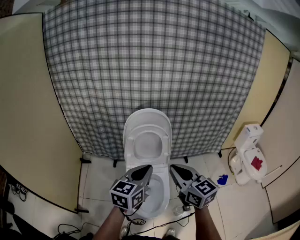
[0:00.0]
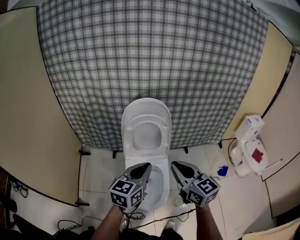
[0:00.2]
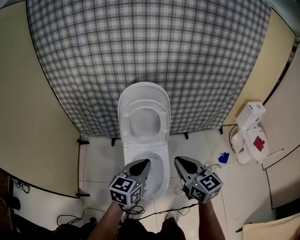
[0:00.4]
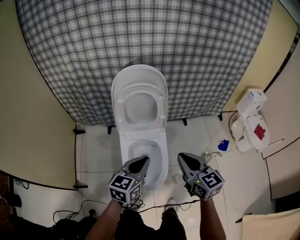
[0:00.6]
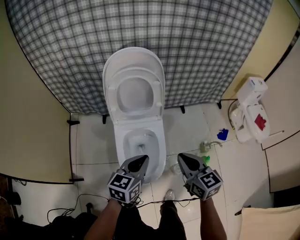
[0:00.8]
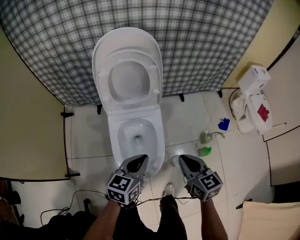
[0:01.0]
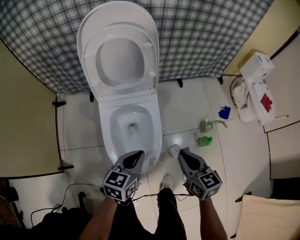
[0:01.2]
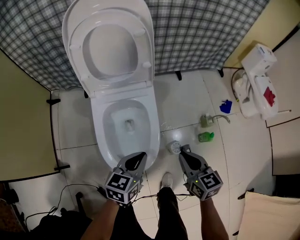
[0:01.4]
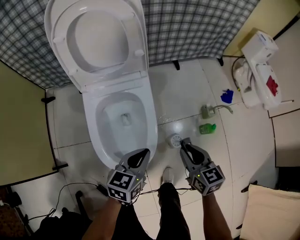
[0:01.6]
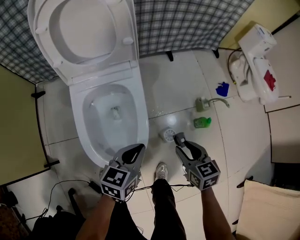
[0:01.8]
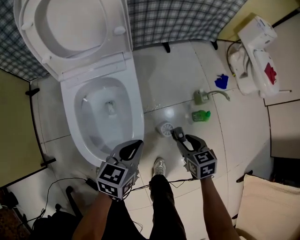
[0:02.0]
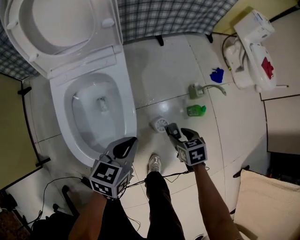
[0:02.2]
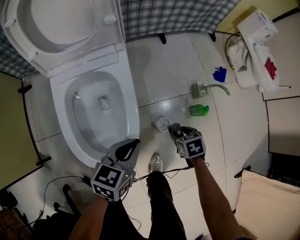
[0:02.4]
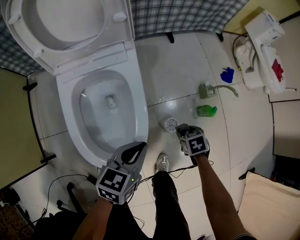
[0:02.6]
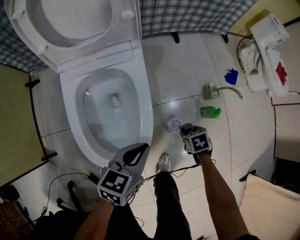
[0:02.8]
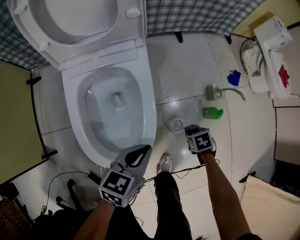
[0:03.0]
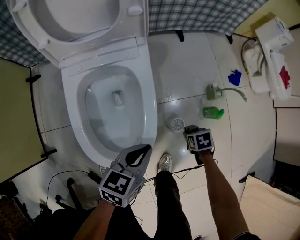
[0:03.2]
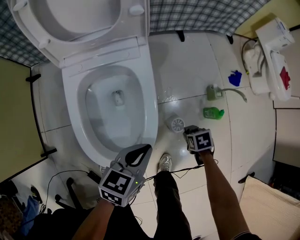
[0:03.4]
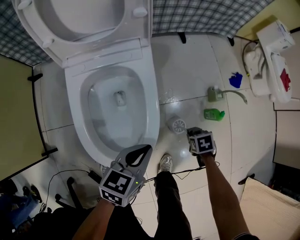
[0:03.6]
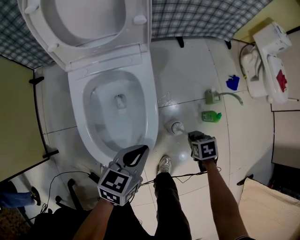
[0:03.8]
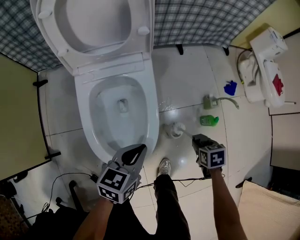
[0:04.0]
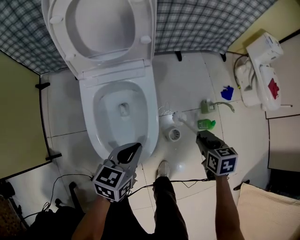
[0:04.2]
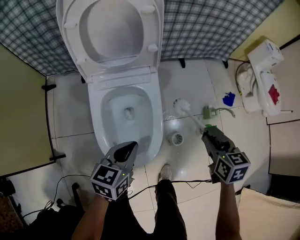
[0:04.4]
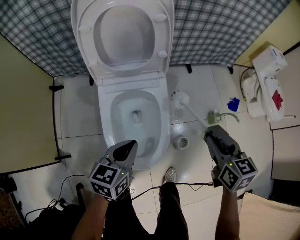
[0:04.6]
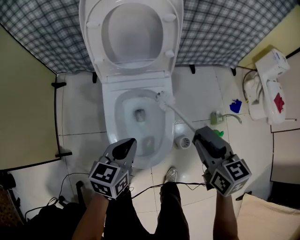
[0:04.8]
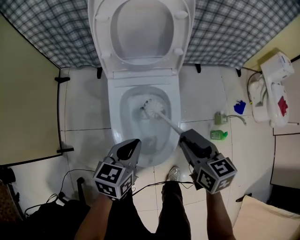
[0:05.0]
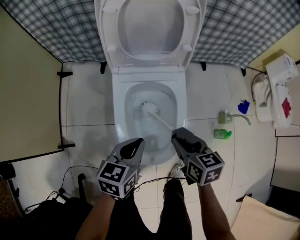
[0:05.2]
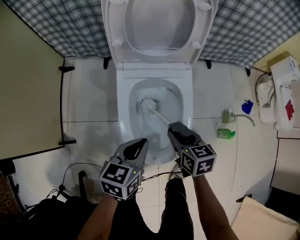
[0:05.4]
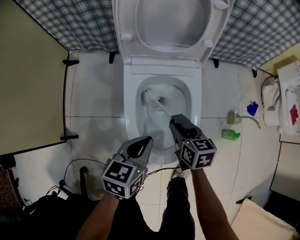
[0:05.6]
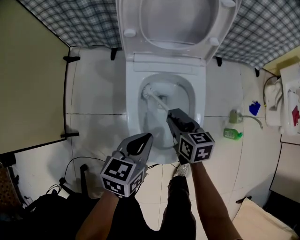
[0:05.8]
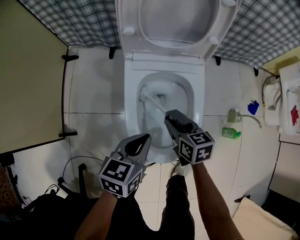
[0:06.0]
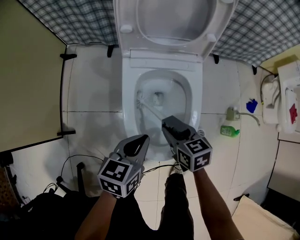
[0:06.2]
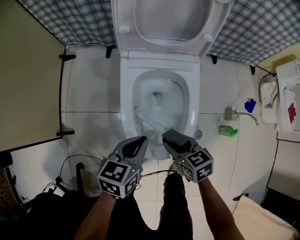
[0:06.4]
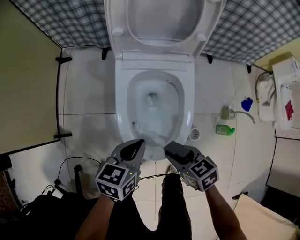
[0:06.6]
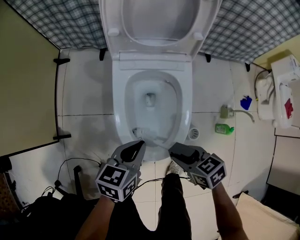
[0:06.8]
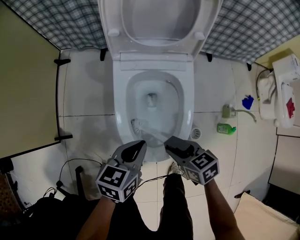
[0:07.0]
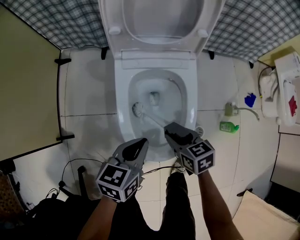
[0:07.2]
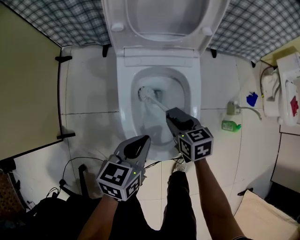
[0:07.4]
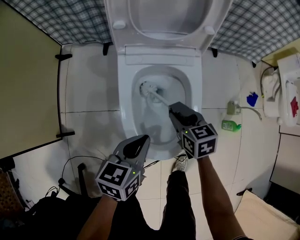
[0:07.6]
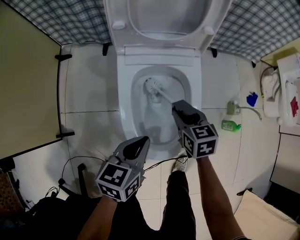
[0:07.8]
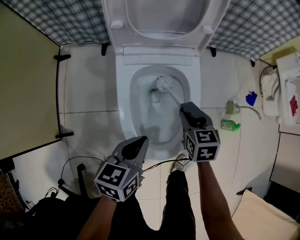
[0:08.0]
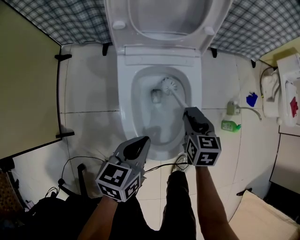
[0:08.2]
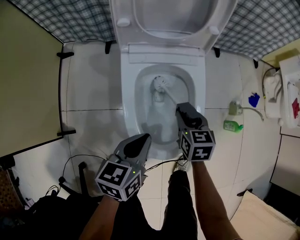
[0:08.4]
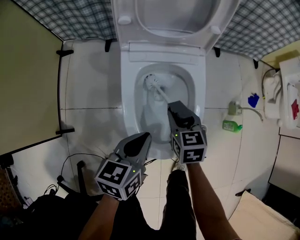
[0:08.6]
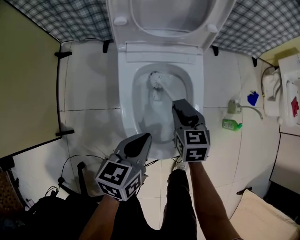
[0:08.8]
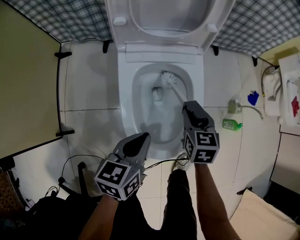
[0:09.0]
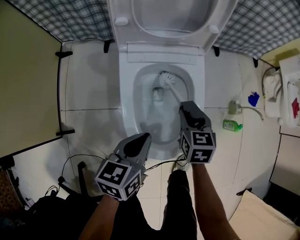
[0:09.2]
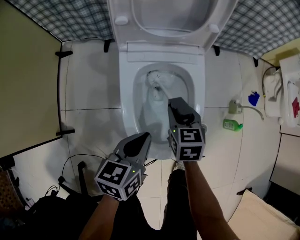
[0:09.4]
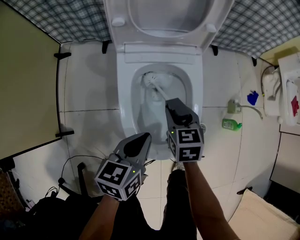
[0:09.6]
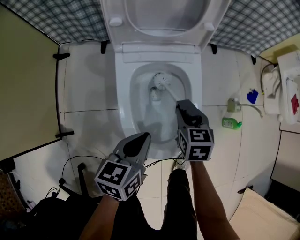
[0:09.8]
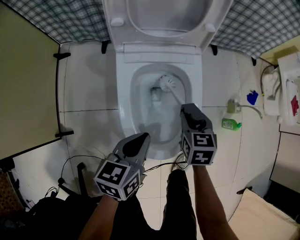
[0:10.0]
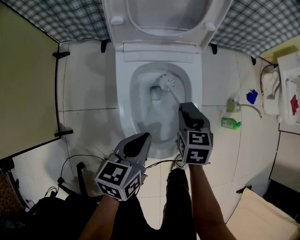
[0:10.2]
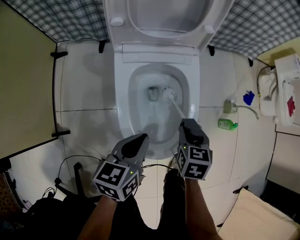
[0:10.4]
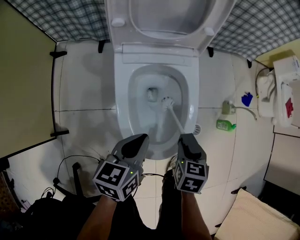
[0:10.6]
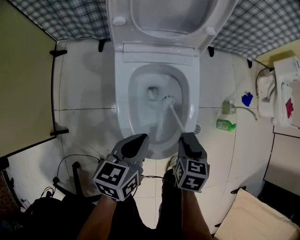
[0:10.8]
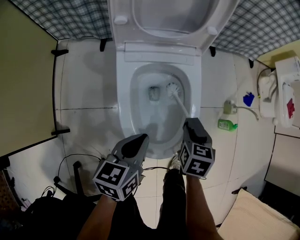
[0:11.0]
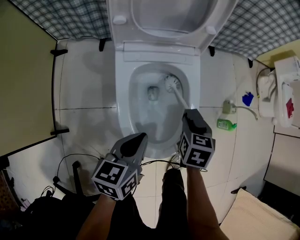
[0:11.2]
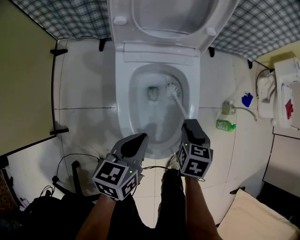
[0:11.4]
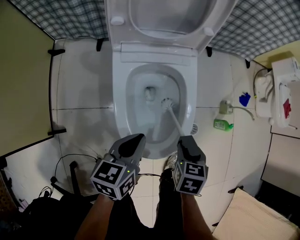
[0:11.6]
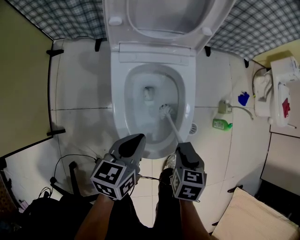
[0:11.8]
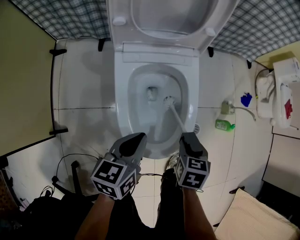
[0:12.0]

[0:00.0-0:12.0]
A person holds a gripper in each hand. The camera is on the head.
0:00.0 to 0:01.6: The two grippers go about 40 cm downward. The left gripper rotates some 30 degrees, while the right gripper rotates roughly 30 degrees.
0:01.6 to 0:03.0: The right gripper goes approximately 25 cm downward, and tips its fingers downward by about 50 degrees. The left gripper travels downward by approximately 5 cm.
0:03.0 to 0:04.4: The right gripper heads upward, covering roughly 30 cm, and tilts its fingers approximately 40 degrees upward, while the left gripper ends up approximately 15 cm from where it was.
0:04.4 to 0:06.0: The left gripper heads to the left, covering approximately 10 cm, while the right gripper goes some 35 cm to the left and downward, and changes its angle by approximately 20 degrees.
0:06.0 to 0:07.6: The right gripper reaches approximately 15 cm backward, then returns.
0:07.6 to 0:09.0: The right gripper moves left and right over some 10 cm, changing direction 2 times.
0:09.0 to 0:10.4: The right gripper travels backward by approximately 5 cm, and goes to the left and returns, about 5 cm each way.
0:10.4 to 0:12.0: The right gripper goes forward and backward, some 10 cm each way, reversing 3 times.

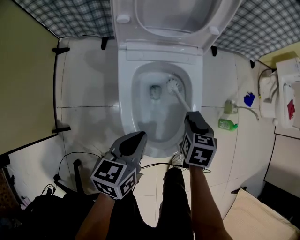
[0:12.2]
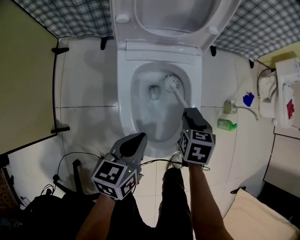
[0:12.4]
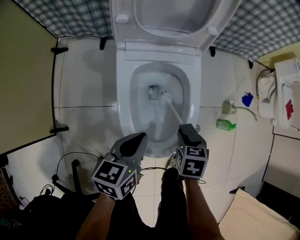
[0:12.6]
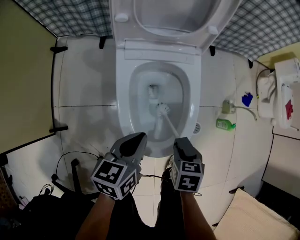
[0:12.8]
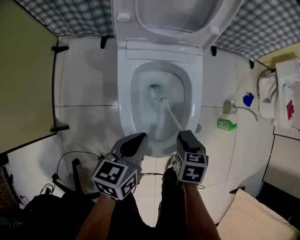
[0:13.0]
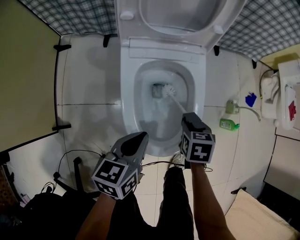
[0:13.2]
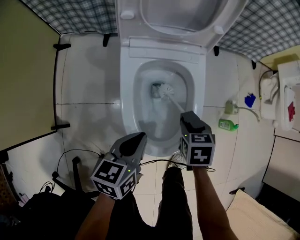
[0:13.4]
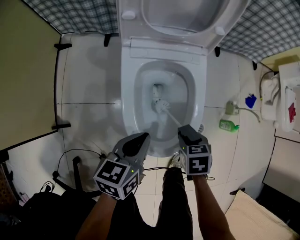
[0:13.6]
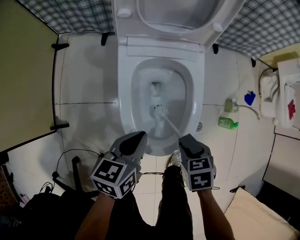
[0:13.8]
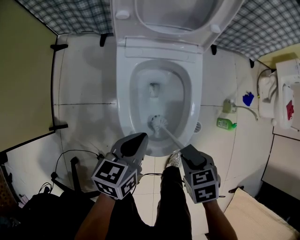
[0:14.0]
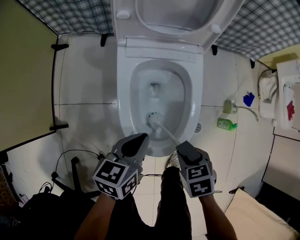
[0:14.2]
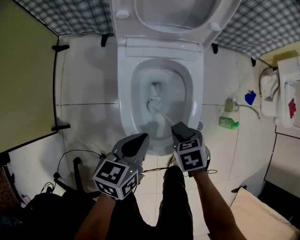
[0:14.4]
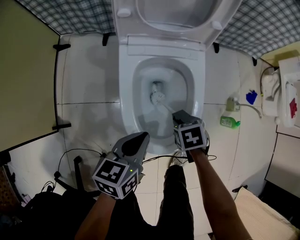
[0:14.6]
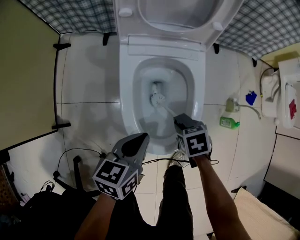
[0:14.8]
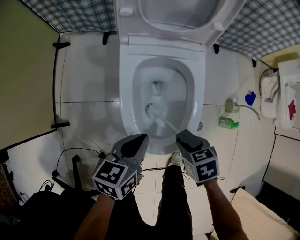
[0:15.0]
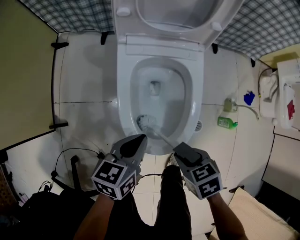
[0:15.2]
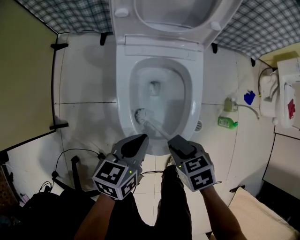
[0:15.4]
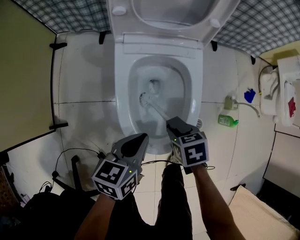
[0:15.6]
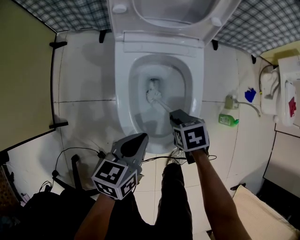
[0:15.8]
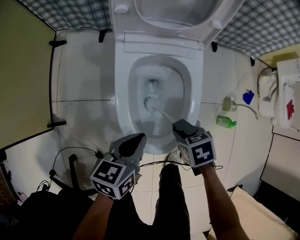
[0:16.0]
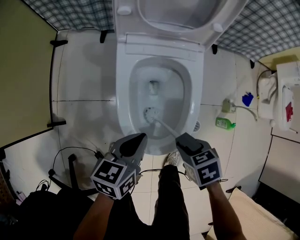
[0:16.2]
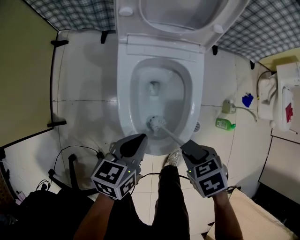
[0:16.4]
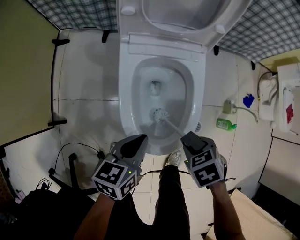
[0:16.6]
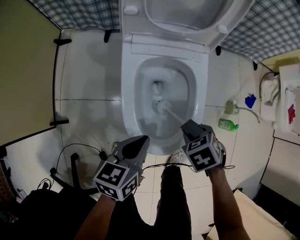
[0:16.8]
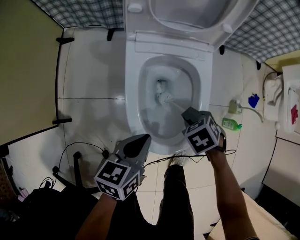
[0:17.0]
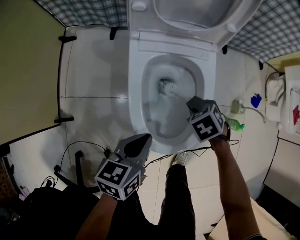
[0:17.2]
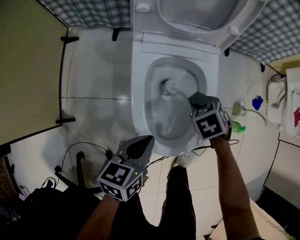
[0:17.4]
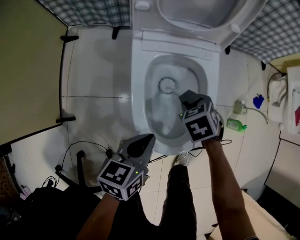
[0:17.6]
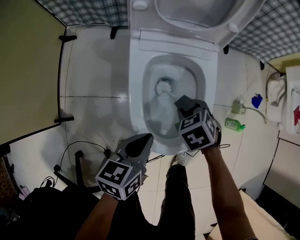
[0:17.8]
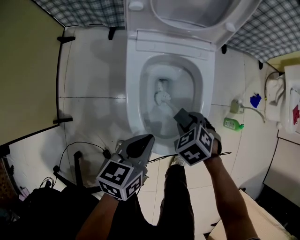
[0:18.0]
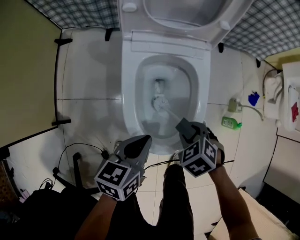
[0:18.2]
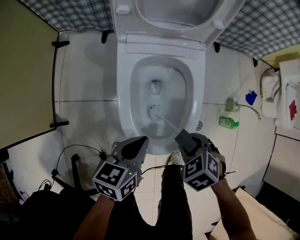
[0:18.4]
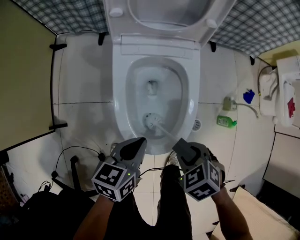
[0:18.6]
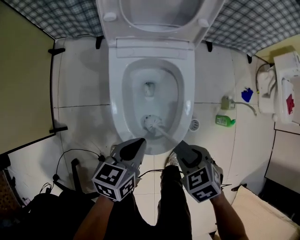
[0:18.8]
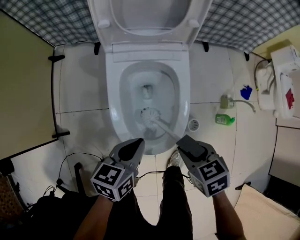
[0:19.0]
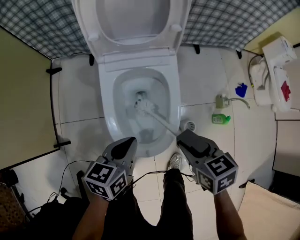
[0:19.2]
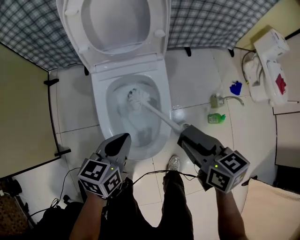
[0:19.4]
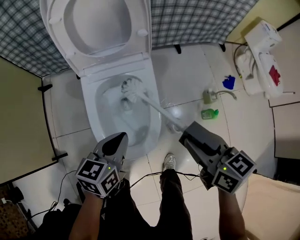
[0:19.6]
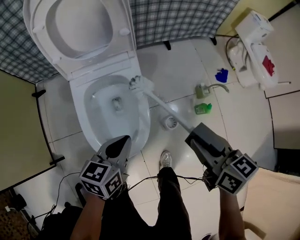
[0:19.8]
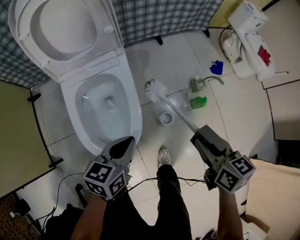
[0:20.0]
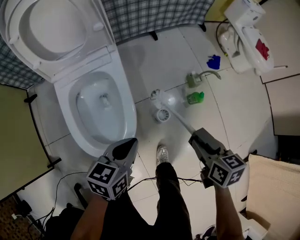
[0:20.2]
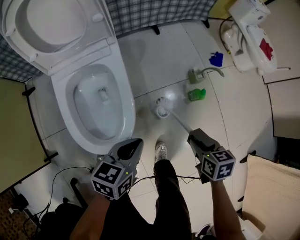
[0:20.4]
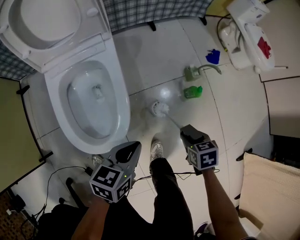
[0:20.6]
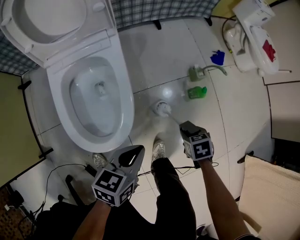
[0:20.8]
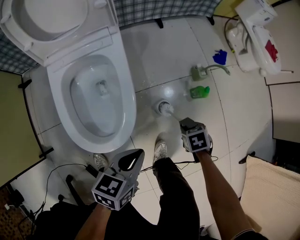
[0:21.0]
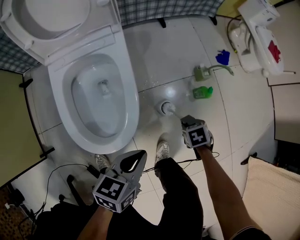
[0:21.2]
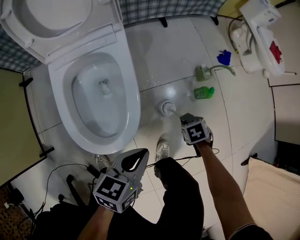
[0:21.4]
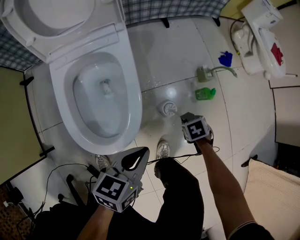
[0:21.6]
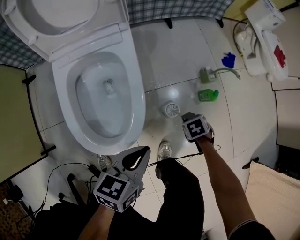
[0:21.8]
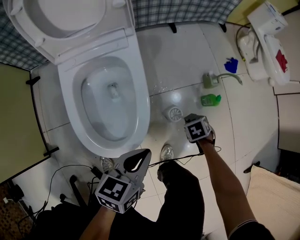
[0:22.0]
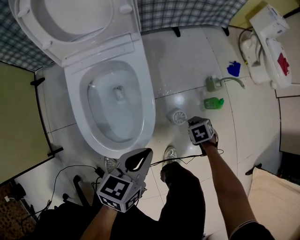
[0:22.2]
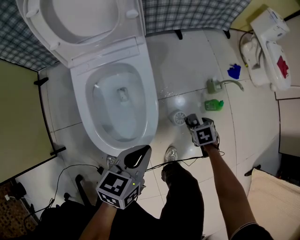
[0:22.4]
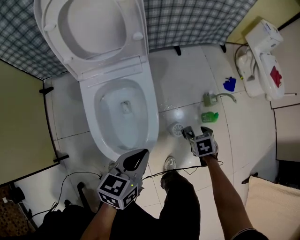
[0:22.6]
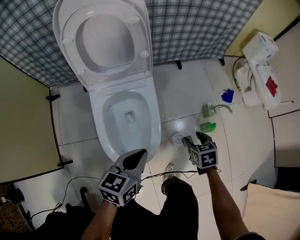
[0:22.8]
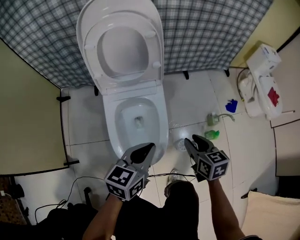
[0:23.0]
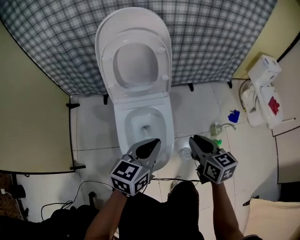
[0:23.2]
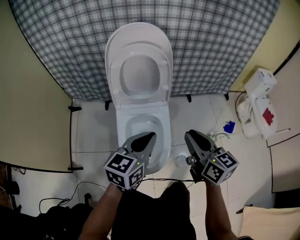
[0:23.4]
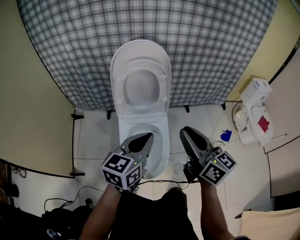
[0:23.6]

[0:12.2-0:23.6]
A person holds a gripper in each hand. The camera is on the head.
0:12.2 to 0:13.6: The right gripper moves forward and backward over roughly 10 cm, changing direction 2 times.
0:13.6 to 0:15.0: The right gripper moves up and down over approximately 10 cm, changing direction 2 times.
0:16.4 to 0:17.8: The right gripper moves roughly 15 cm.
0:17.8 to 0:19.4: The left gripper shifts by some 10 cm. Meanwhile the right gripper heads upward, covering roughly 20 cm, and tips its fingers upward by approximately 30 degrees.
0:19.4 to 0:20.8: The right gripper moves downward, some 25 cm, and angles its fingers downward, by some 40 degrees. Meanwhile the left gripper shifts by some 25 cm.
0:20.8 to 0:22.2: The right gripper ends up about 10 cm from where it was, while the left gripper moves about 5 cm.
0:22.2 to 0:23.6: The left gripper travels upward by some 35 cm, and turns by about 30 degrees, while the right gripper moves upward, approximately 60 cm, tilts its fingers some 80 degrees upward, and closes up.
